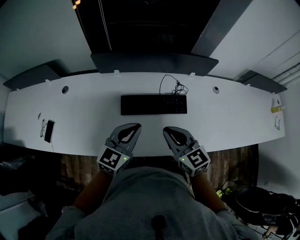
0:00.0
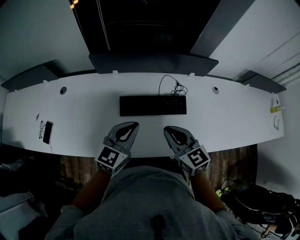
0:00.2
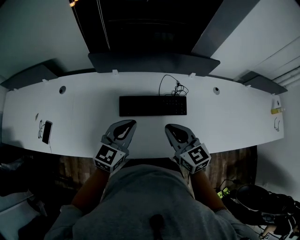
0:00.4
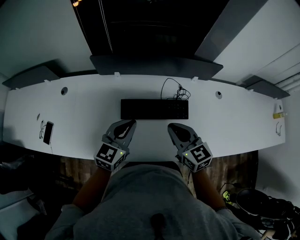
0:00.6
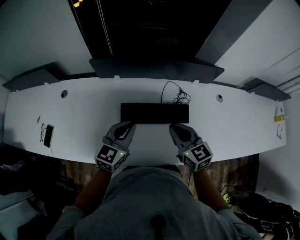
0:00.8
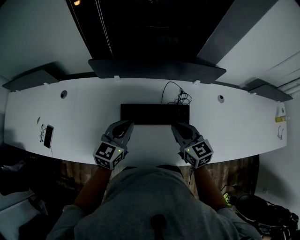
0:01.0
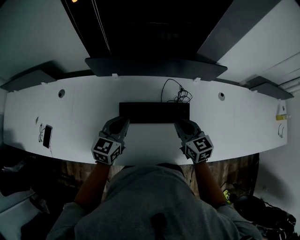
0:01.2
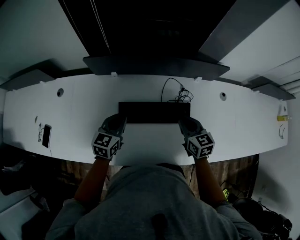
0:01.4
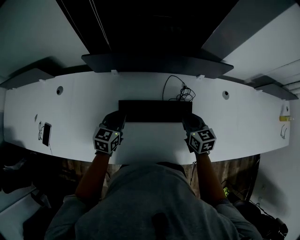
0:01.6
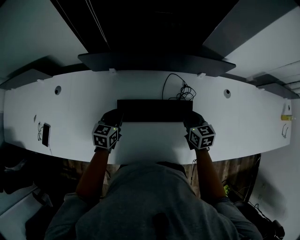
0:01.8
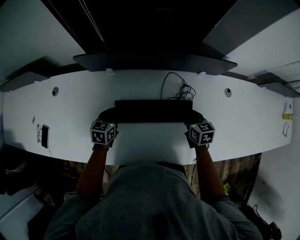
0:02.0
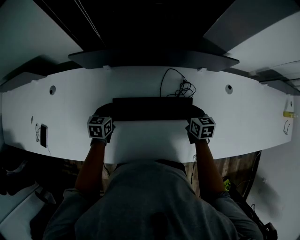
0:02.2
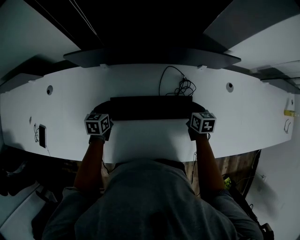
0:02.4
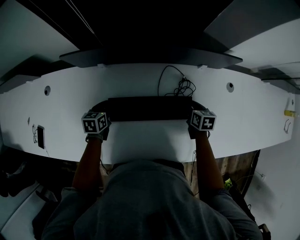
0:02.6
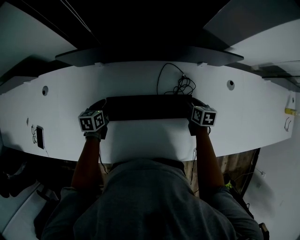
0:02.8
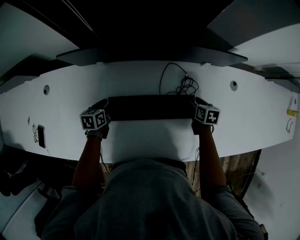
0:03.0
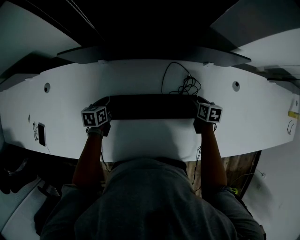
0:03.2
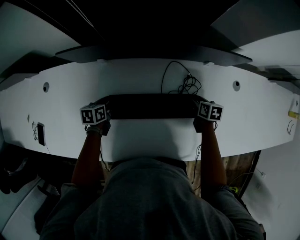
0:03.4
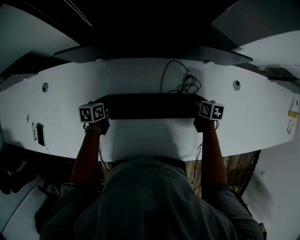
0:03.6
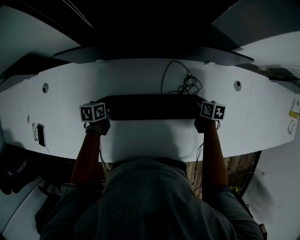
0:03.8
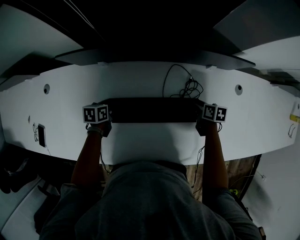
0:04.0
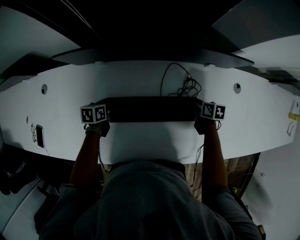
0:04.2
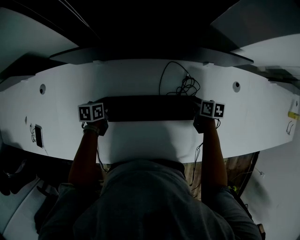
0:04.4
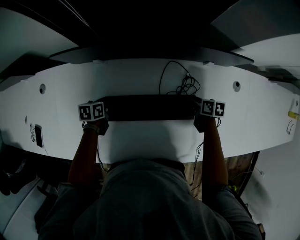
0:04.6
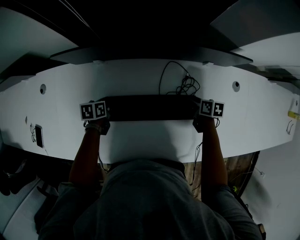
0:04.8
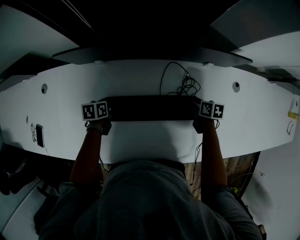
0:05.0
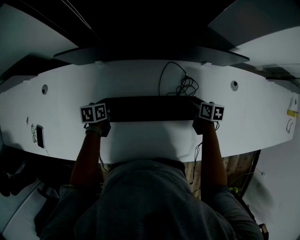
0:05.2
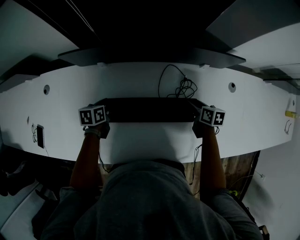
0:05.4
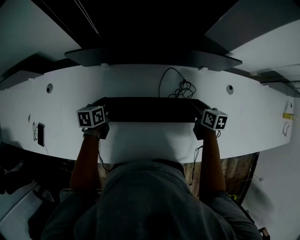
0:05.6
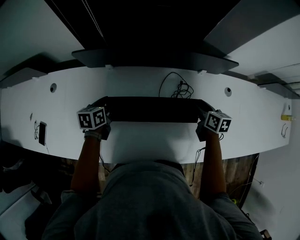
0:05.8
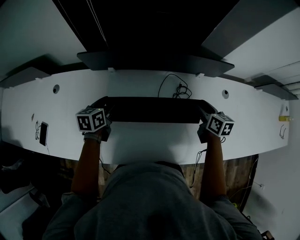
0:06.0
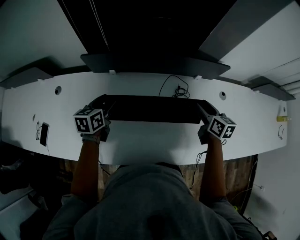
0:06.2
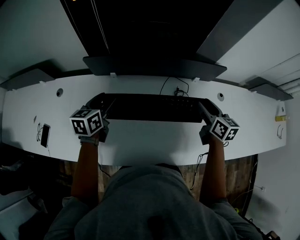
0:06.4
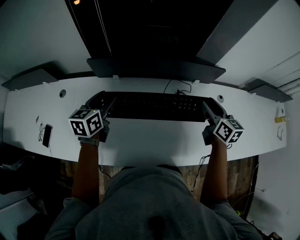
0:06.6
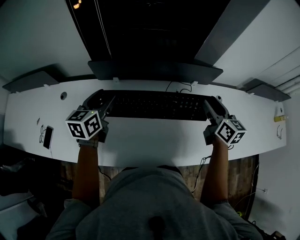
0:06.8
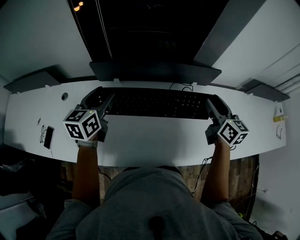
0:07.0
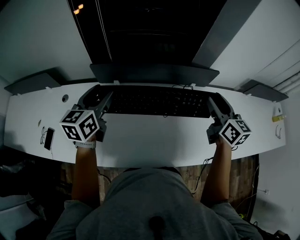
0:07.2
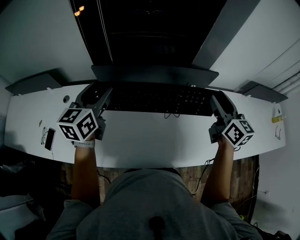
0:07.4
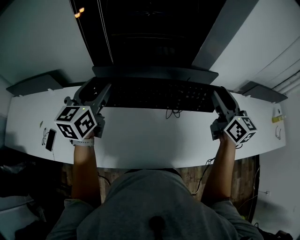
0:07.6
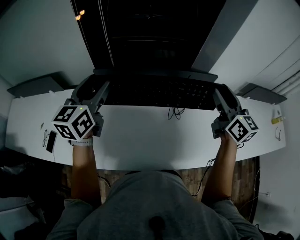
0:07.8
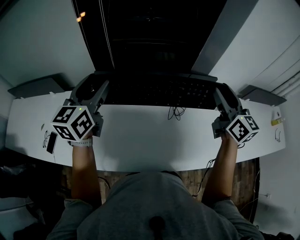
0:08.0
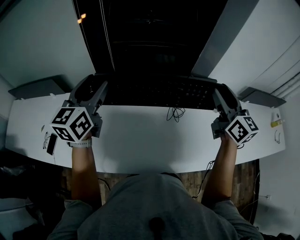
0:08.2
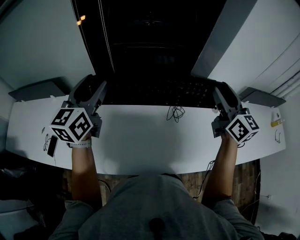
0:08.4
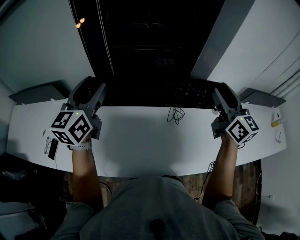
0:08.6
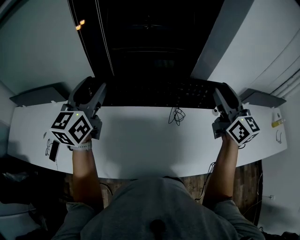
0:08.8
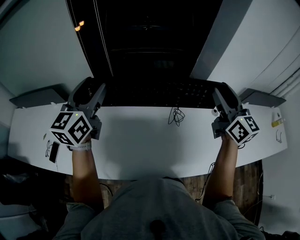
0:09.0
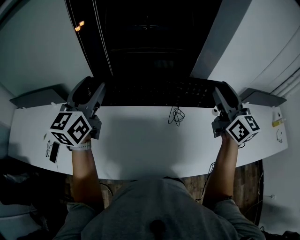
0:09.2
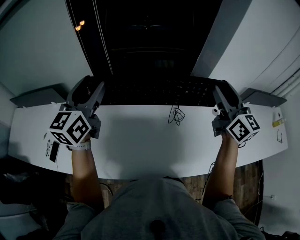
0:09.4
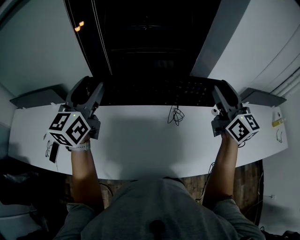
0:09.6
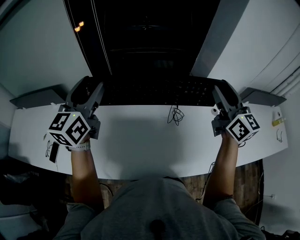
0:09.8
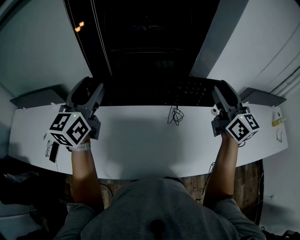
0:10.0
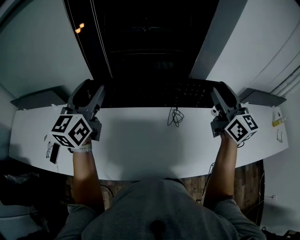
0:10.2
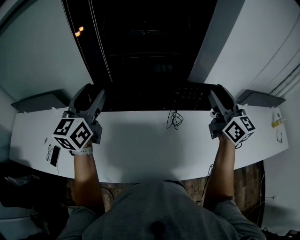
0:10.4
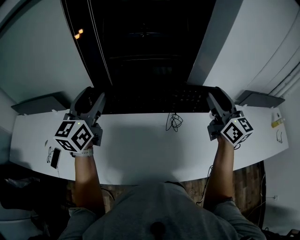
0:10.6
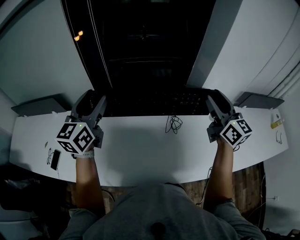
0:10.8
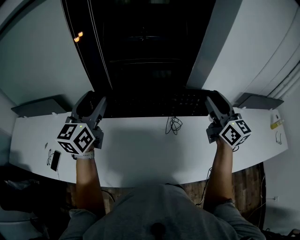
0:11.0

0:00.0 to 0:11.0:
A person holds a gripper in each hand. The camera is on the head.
0:00.0 to 0:01.6: The right gripper travels forward, downward and to the right by roughly 25 cm, while the left gripper moves forward and downward, some 20 cm, and changes its angle by approximately 20 degrees.
0:01.6 to 0:03.2: The right gripper is displaced downward, to the right and forward by some 20 cm, changes its angle by roughly 30 degrees, and opens up; the left gripper goes approximately 20 cm downward and forward, changes its angle by approximately 30 degrees, and opens up.
0:03.2 to 0:04.8: The grippers move only a little.
0:04.8 to 0:06.2: The two grippers go approximately 25 cm upward. The right gripper swivels about 40 degrees, while the left gripper changes its angle by roughly 30 degrees.
0:06.2 to 0:07.8: The grippers both shift upward by about 30 cm. The left gripper turns by about 30 degrees. Meanwhile the right gripper turns by about 30 degrees.
0:07.8 to 0:09.4: The grippers make only small movements.
0:09.4 to 0:11.0: Both grippers stay put.

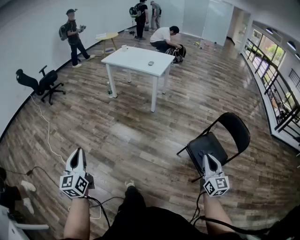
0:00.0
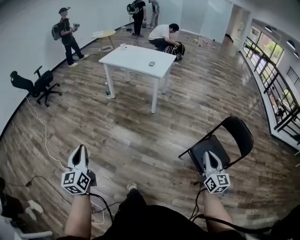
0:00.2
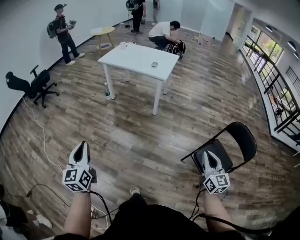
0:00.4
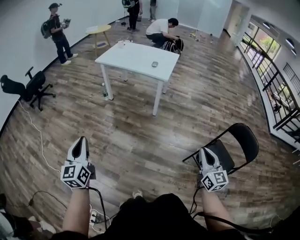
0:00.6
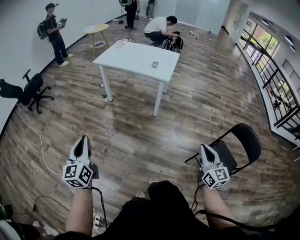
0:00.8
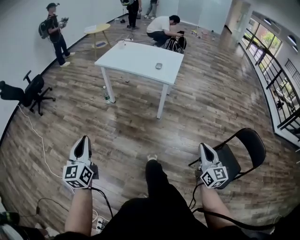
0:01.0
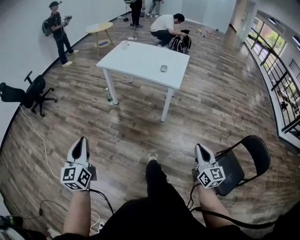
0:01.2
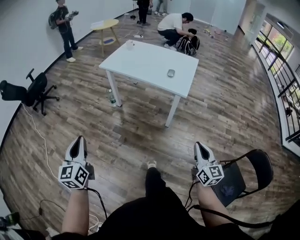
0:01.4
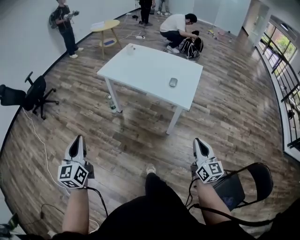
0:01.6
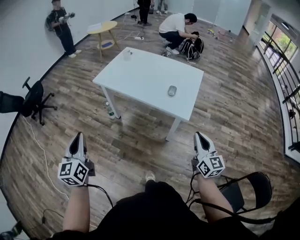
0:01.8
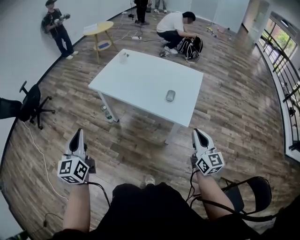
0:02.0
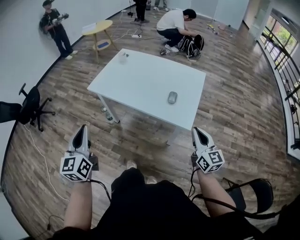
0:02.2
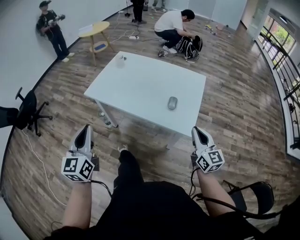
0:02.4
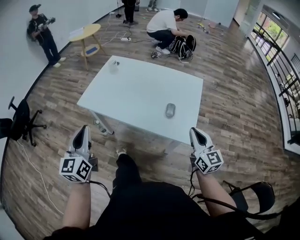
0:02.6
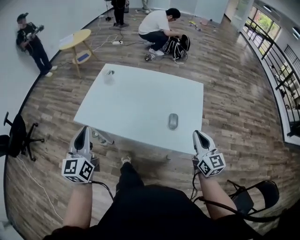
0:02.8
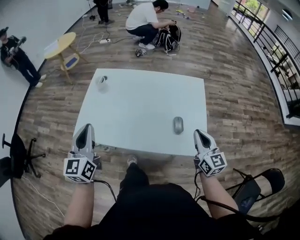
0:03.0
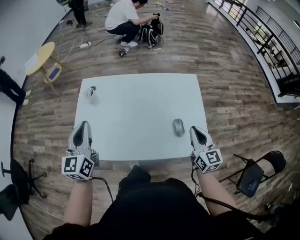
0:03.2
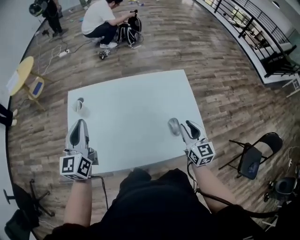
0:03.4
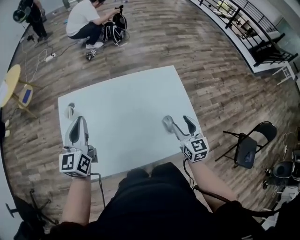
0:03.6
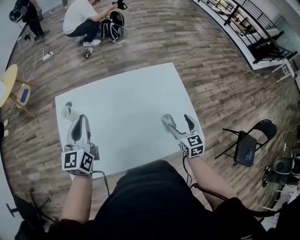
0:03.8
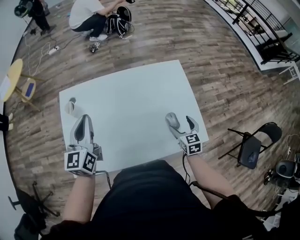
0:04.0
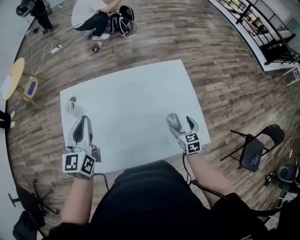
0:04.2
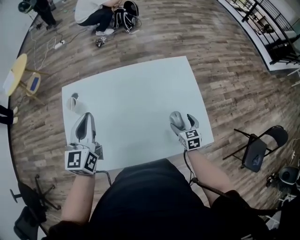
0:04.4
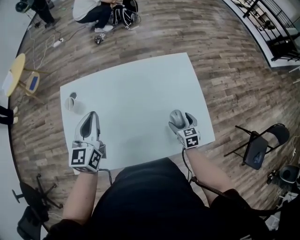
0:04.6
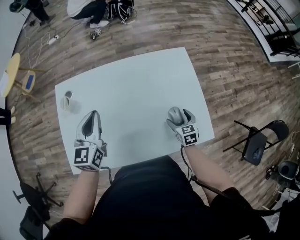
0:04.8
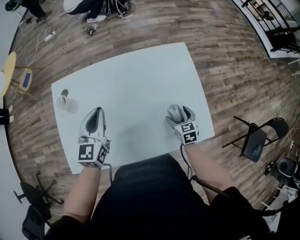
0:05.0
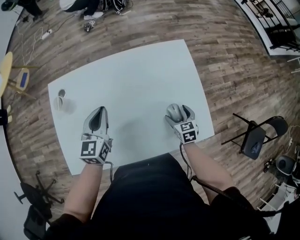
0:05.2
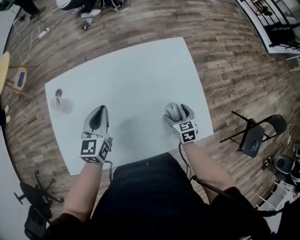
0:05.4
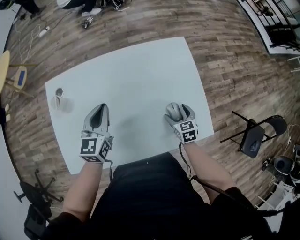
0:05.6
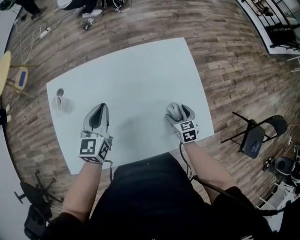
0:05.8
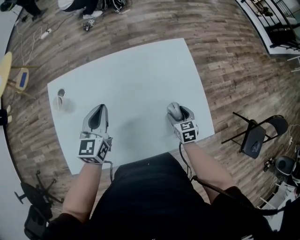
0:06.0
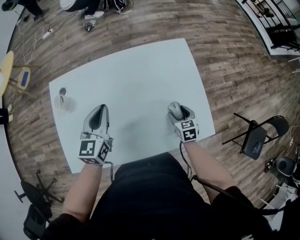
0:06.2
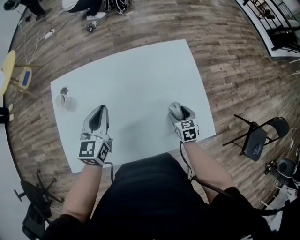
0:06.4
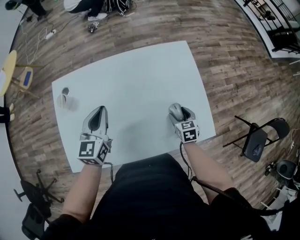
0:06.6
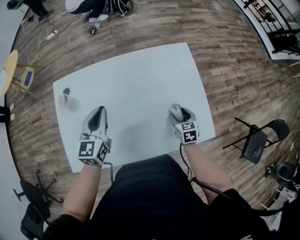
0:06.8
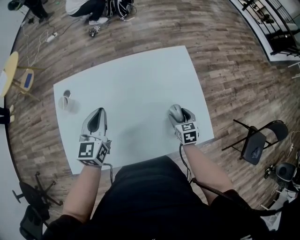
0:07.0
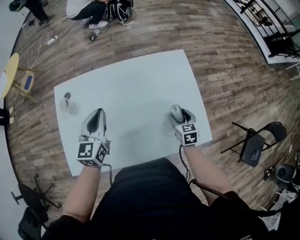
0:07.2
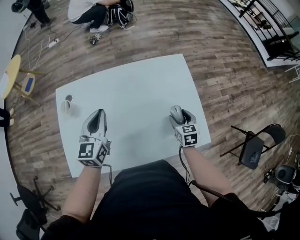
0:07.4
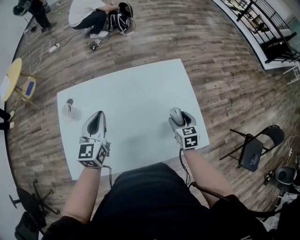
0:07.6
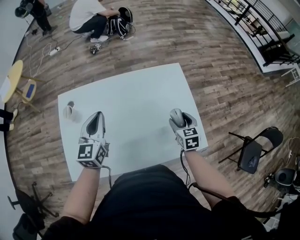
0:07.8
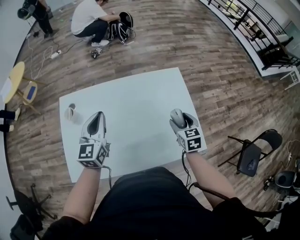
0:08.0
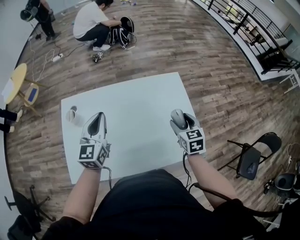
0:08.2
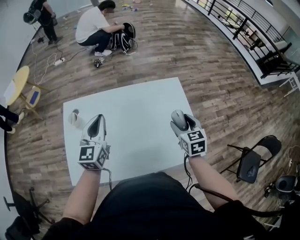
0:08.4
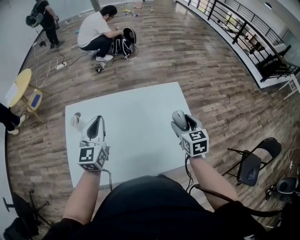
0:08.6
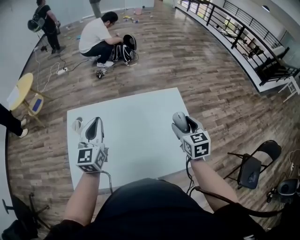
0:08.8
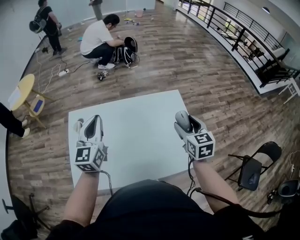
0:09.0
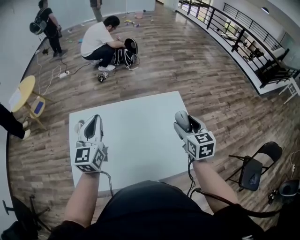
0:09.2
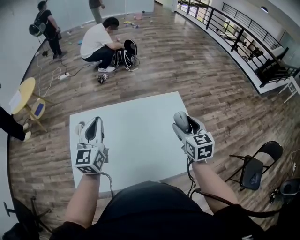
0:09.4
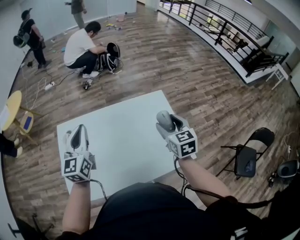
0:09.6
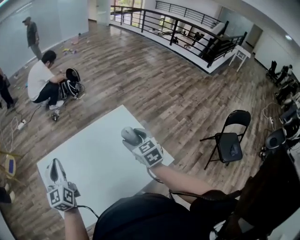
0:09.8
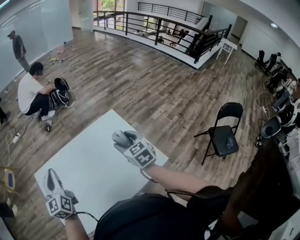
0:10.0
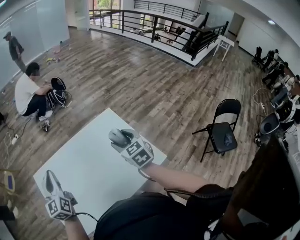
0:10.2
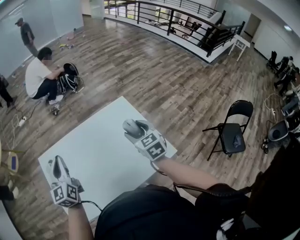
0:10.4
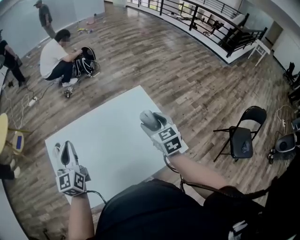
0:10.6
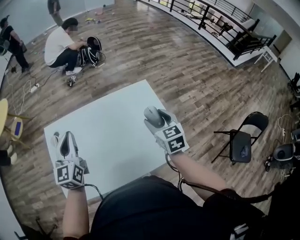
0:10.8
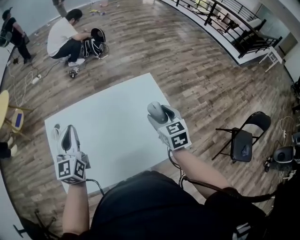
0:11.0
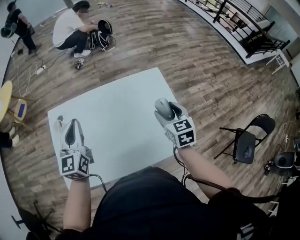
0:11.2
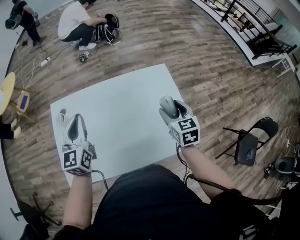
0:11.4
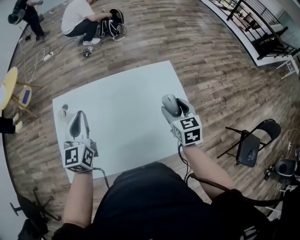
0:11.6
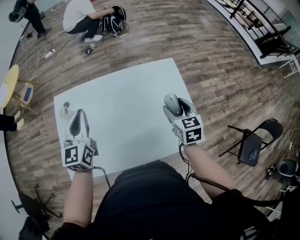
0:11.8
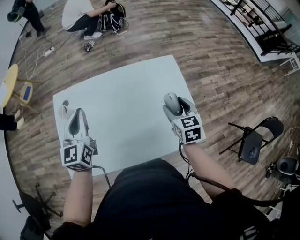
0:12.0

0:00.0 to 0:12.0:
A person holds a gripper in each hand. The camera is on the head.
0:00.0 to 0:01.6: The two grippers travel together, forward, about 60 cm.
0:01.6 to 0:03.0: Both grippers travel together forward, about 40 cm. The left gripper rotates roughly 30 degrees.
0:03.0 to 0:04.4: The right gripper travels downward by approximately 20 cm, angles its fingers downward, by roughly 30 degrees, and opens its fingers; the left gripper heads forward, covering approximately 20 cm, and turns by some 20 degrees.
0:04.4 to 0:06.0: The left gripper shifts approximately 10 cm downward and to the right.
0:06.0 to 0:07.6: The right gripper shifts some 10 cm upward.
0:07.6 to 0:09.0: The left gripper is displaced upward by approximately 10 cm; the right gripper goes about 20 cm upward.
0:09.0 to 0:10.4: There are only small adjustments of the grippers.
0:10.4 to 0:12.0: The right gripper heads downward, covering some 5 cm.

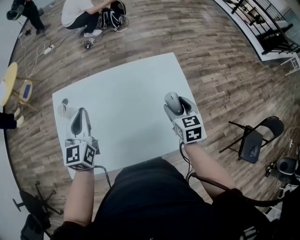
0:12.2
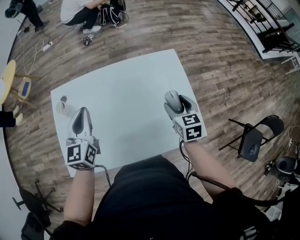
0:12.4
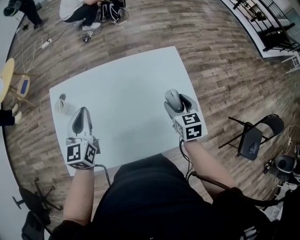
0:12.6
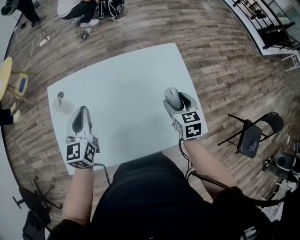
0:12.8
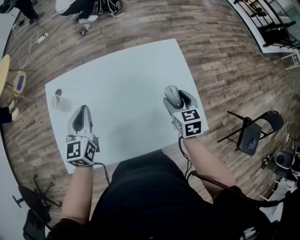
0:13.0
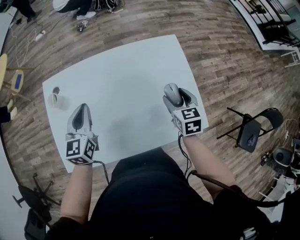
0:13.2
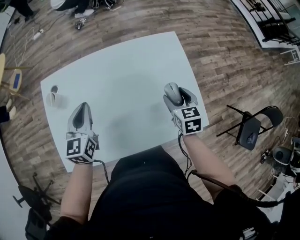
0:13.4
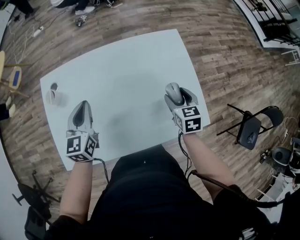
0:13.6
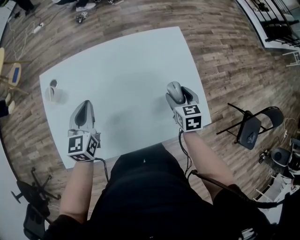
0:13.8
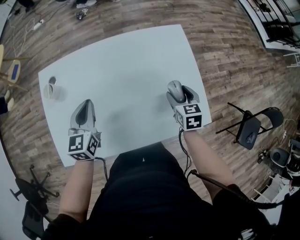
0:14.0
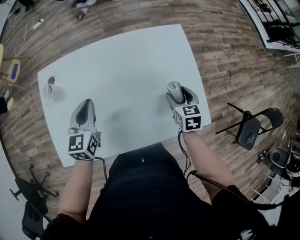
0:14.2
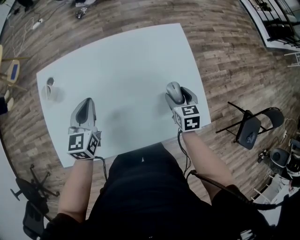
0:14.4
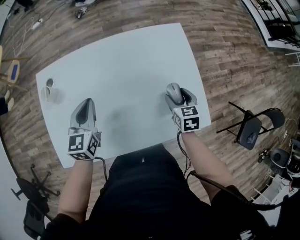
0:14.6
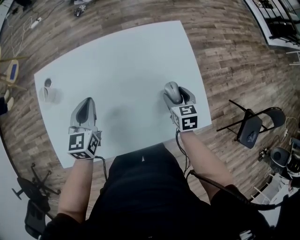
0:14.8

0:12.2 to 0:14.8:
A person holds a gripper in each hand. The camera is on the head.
0:12.2 to 0:13.4: The left gripper shifts approximately 10 cm downward; the right gripper moves approximately 5 cm.
0:13.4 to 0:14.8: The right gripper goes roughly 5 cm downward.
